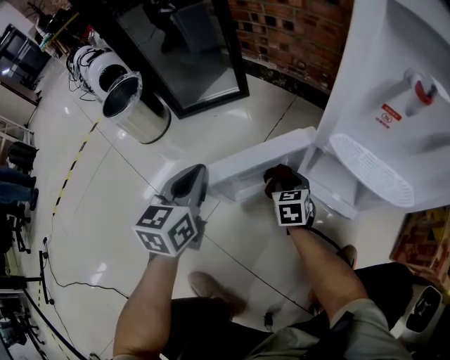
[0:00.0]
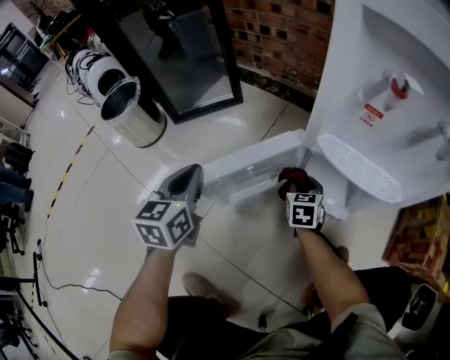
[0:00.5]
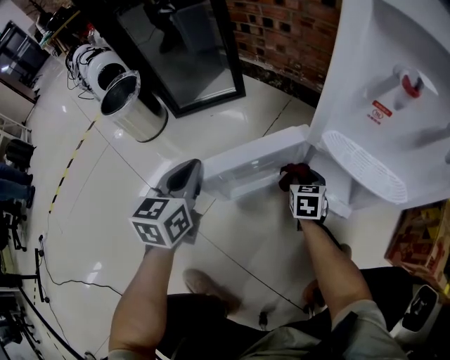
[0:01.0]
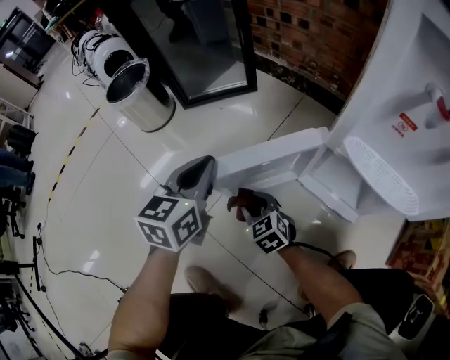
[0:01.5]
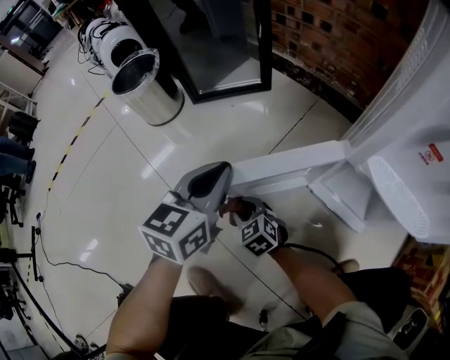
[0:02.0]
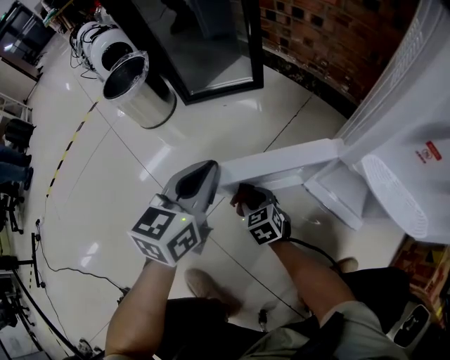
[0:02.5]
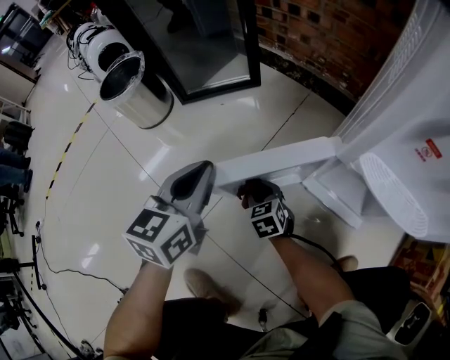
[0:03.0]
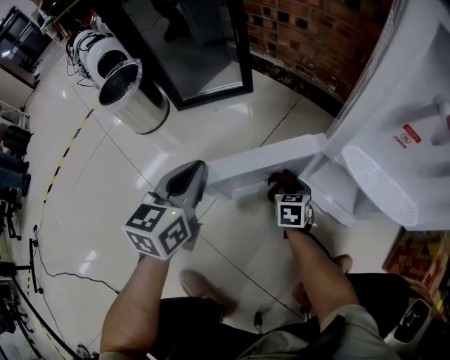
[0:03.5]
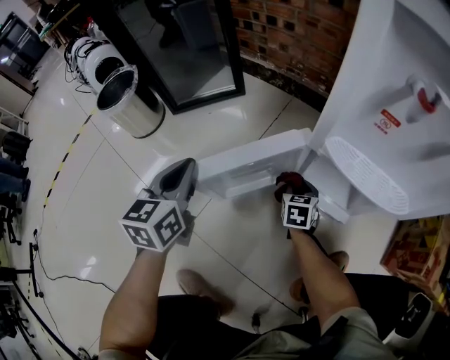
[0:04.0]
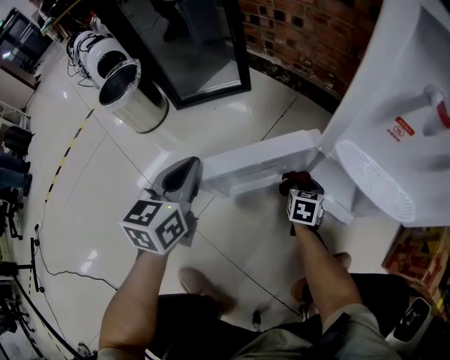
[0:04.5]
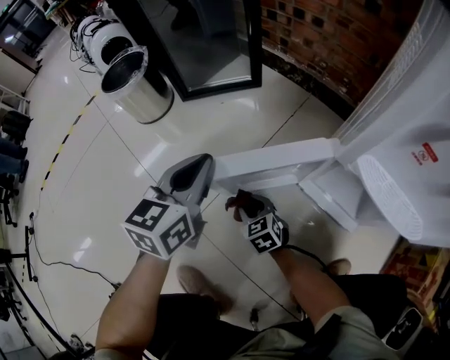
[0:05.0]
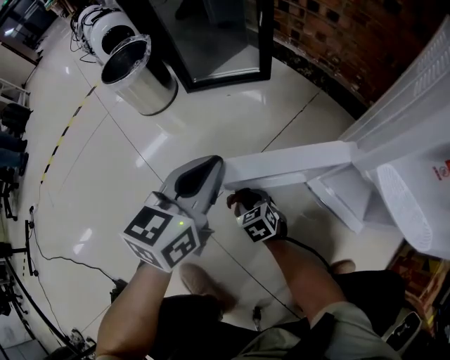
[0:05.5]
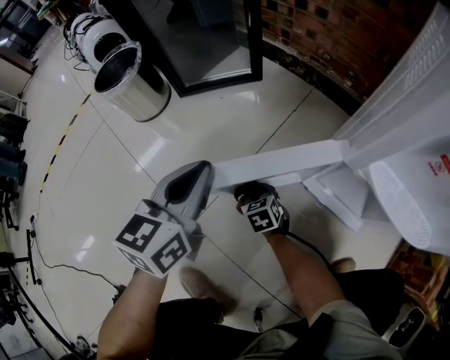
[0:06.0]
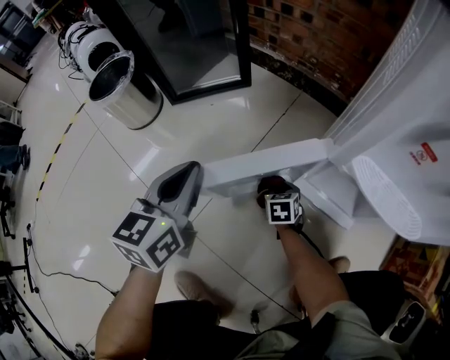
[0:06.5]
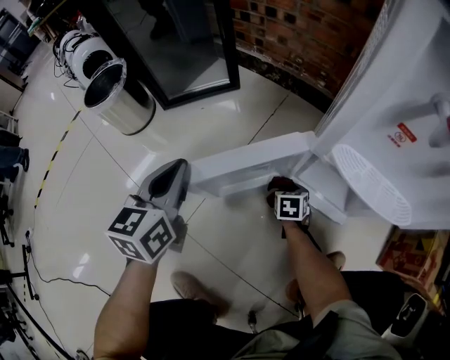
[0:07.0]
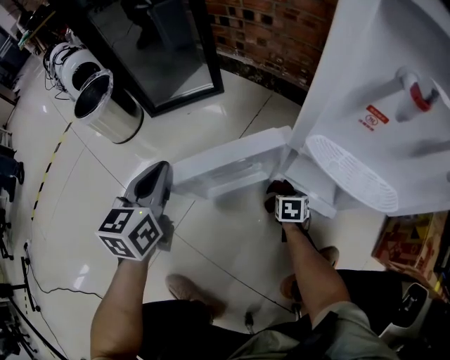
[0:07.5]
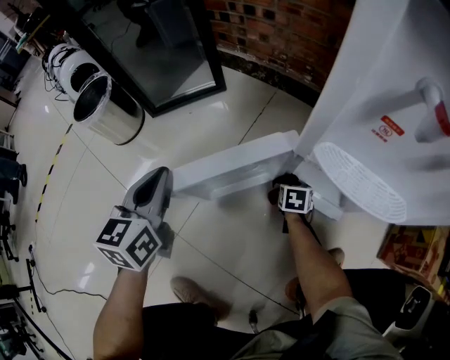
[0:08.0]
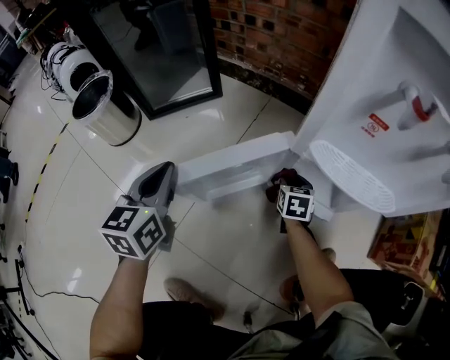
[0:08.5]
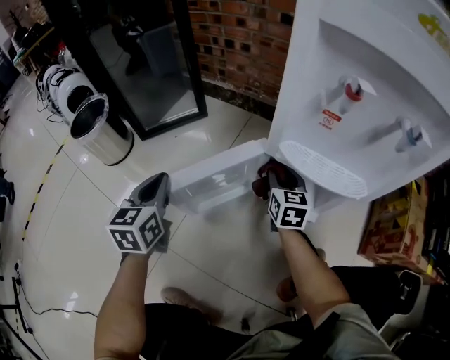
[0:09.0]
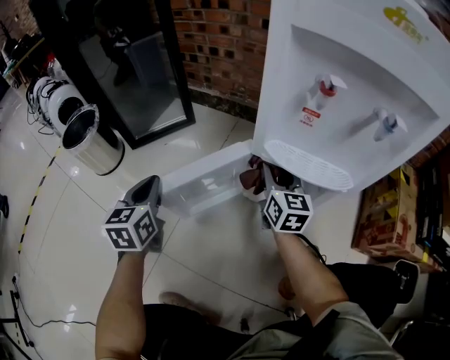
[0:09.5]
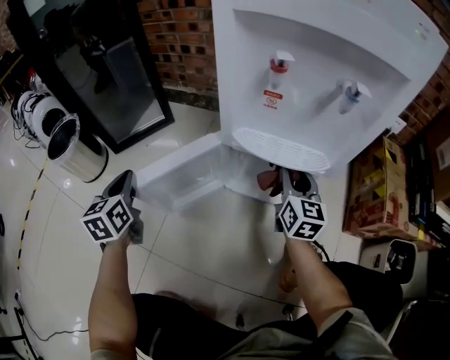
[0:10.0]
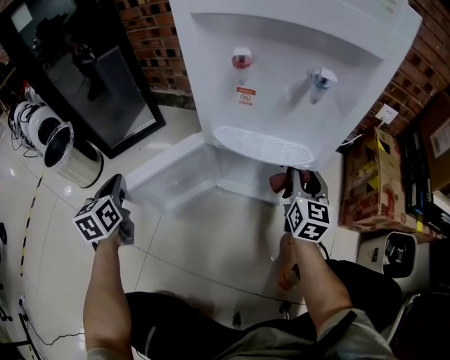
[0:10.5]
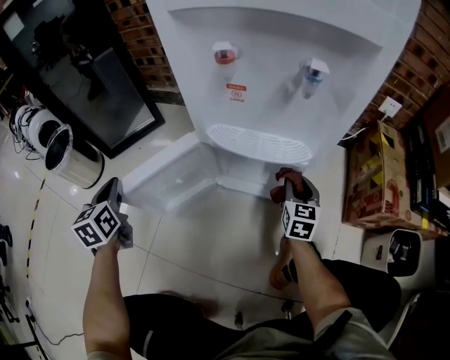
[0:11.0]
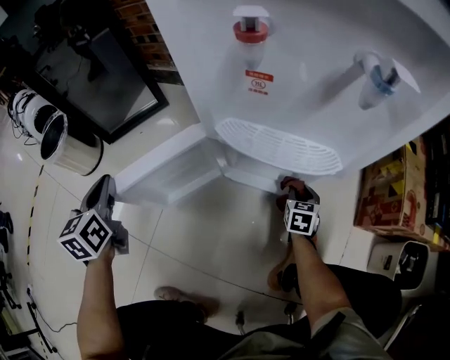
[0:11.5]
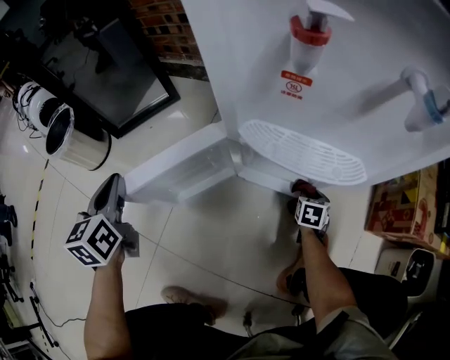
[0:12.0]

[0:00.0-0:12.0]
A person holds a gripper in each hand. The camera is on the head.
0.0 to 2.0 s: The right gripper travels to the left and backward by some 20 cm, and changes its angle by approximately 40 degrees.
2.0 to 4.0 s: The right gripper moves to the right, some 30 cm, and turns by some 50 degrees.
4.0 to 6.0 s: The right gripper goes roughly 20 cm to the left, and rotates roughly 30 degrees.
6.0 to 8.0 s: The right gripper travels to the right by some 25 cm, and changes its angle by about 40 degrees.
8.0 to 10.0 s: The right gripper travels upward by about 30 cm, and angles its fingers upward, by some 50 degrees.
10.0 to 12.0 s: The right gripper shifts about 30 cm downward, and tilts its fingers roughly 40 degrees downward.

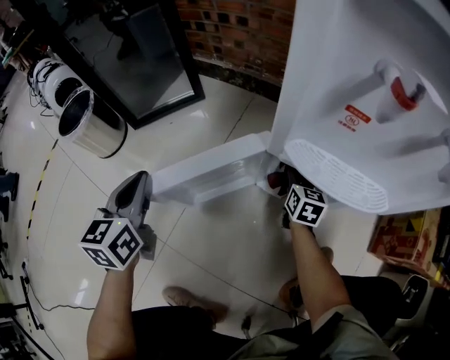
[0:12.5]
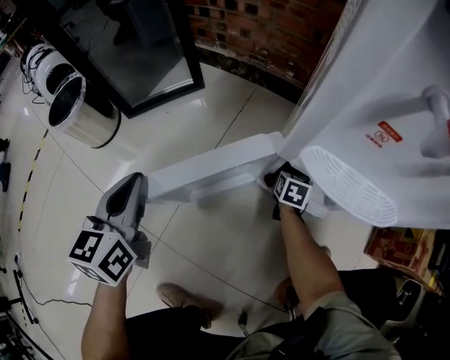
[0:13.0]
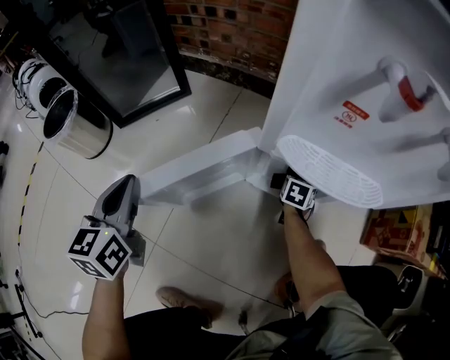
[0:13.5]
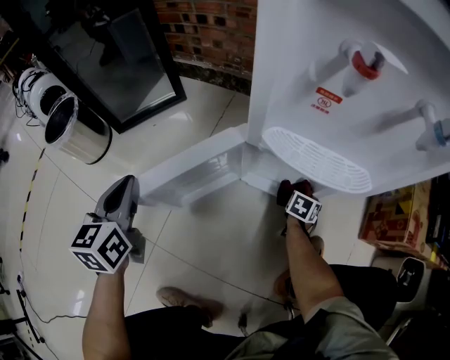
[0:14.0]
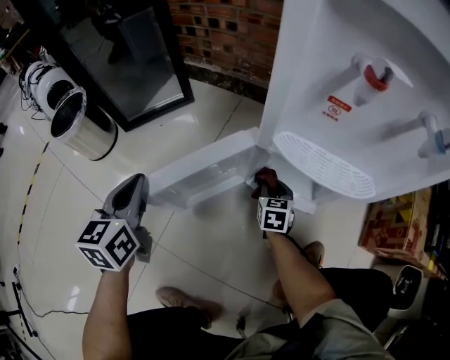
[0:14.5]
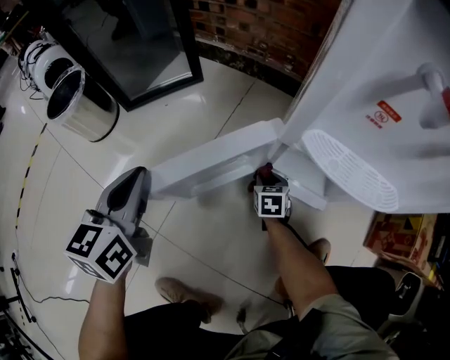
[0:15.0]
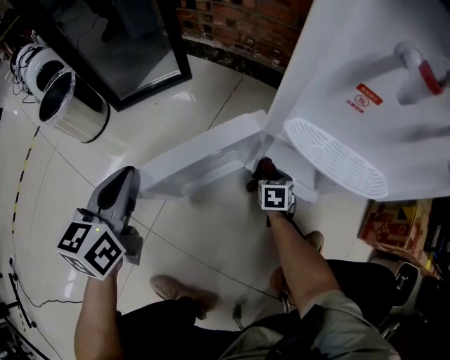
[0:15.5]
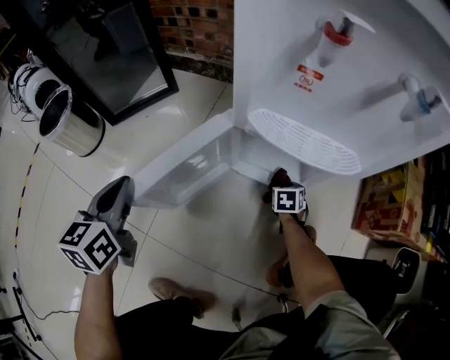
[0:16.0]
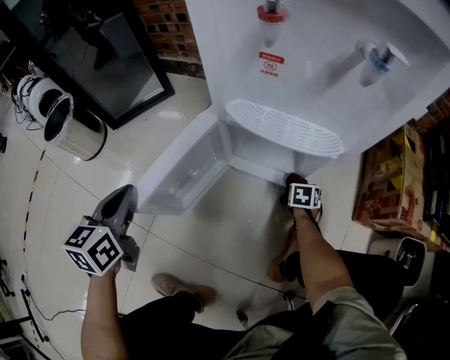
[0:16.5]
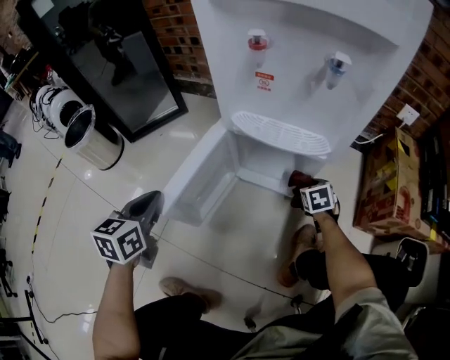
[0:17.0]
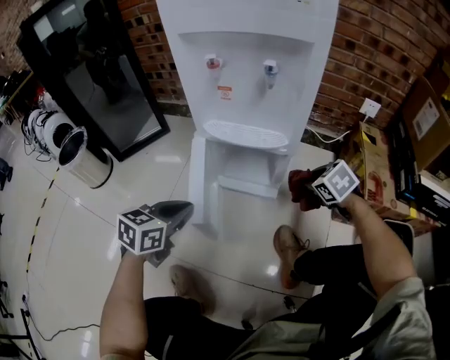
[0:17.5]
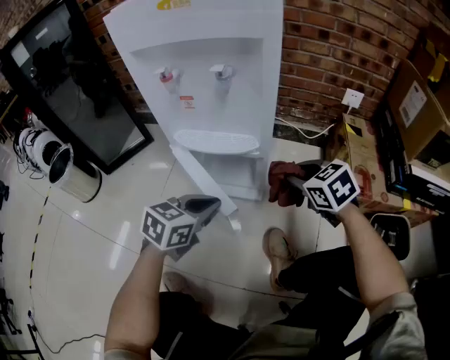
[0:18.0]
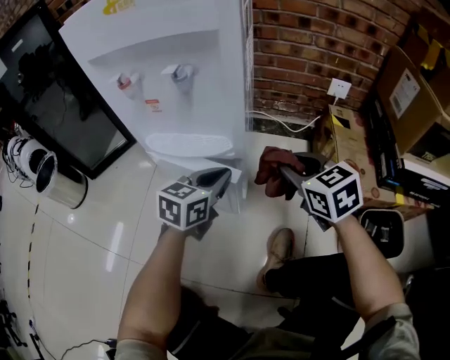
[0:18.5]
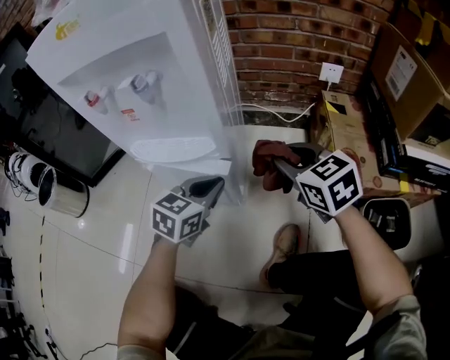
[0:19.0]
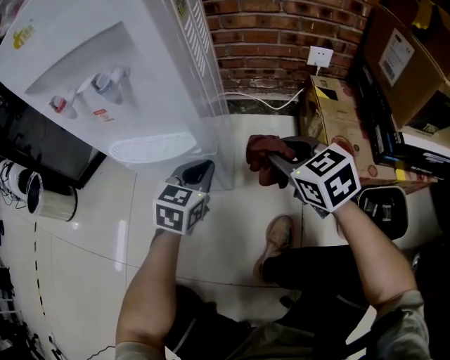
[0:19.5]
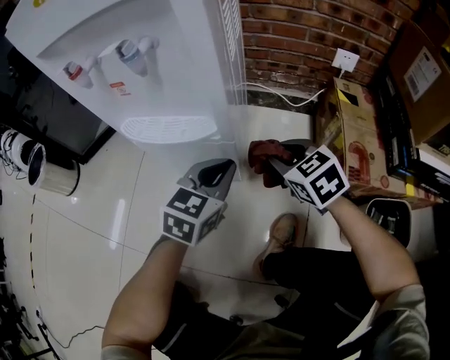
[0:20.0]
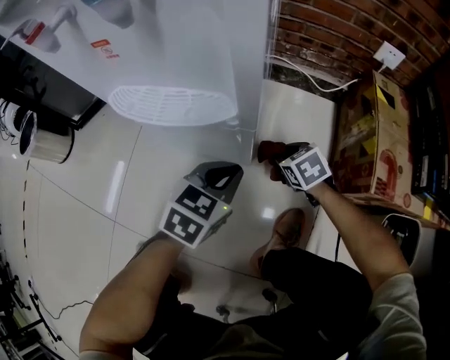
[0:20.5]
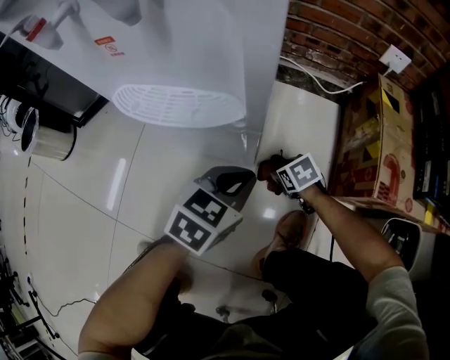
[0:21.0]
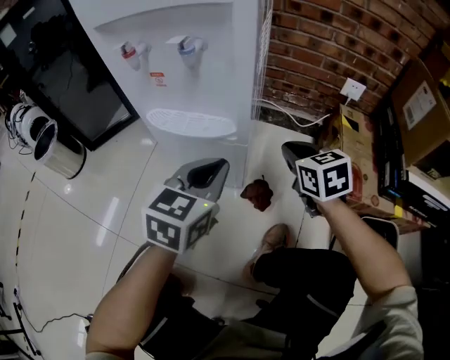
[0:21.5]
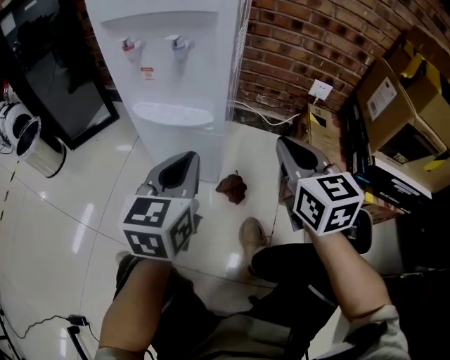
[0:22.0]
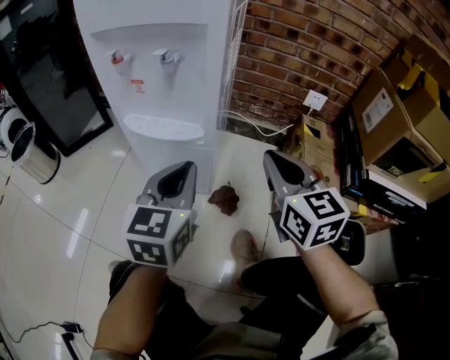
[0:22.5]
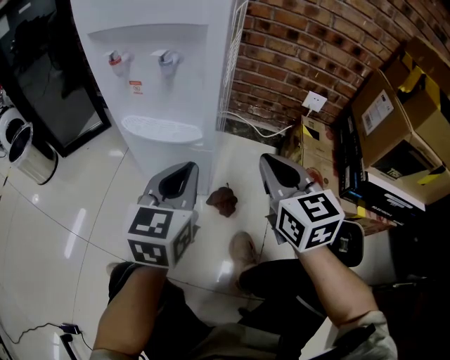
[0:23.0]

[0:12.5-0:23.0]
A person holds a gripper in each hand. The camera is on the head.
12.5 to 14.5 s: The right gripper goes approximately 5 cm backward, and moves some 15 cm to the right and comes back.
14.5 to 16.5 s: The left gripper is displaced backward and to the right by about 10 cm. Meanwhile the right gripper is displaced to the right by roughly 20 cm, and swivels about 30 degrees.
16.5 to 19.0 s: The right gripper heads upward, covering some 35 cm, and tilts its fingers roughly 30 degrees upward; the left gripper goes some 40 cm to the right, and rotates approximately 40 degrees.
19.0 to 21.0 s: The left gripper heads downward, covering some 5 cm. The right gripper travels downward by roughly 35 cm, angles its fingers downward, by approximately 30 degrees, and opens.
21.0 to 23.0 s: The right gripper goes approximately 40 cm upward, tips its fingers upward by approximately 50 degrees, and closes. Meanwhile the left gripper travels upward by some 20 cm, and rotates about 40 degrees.

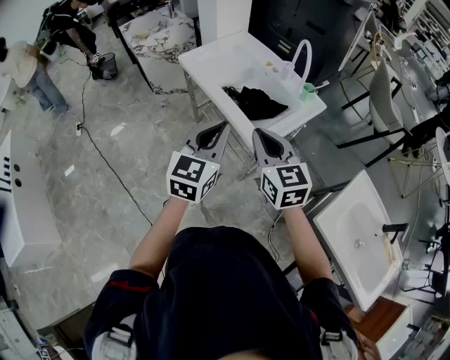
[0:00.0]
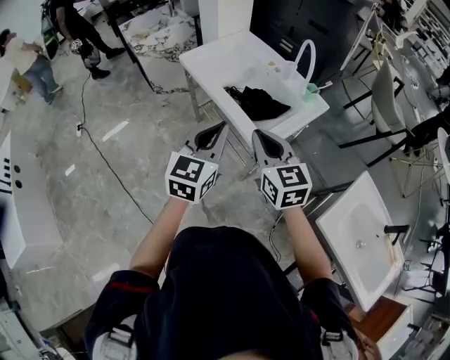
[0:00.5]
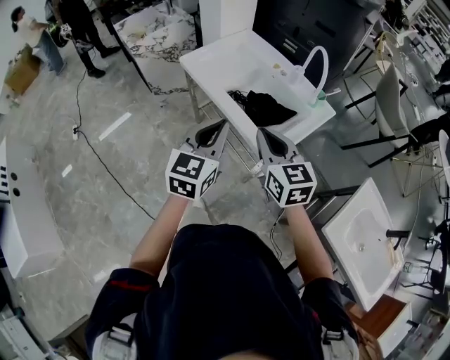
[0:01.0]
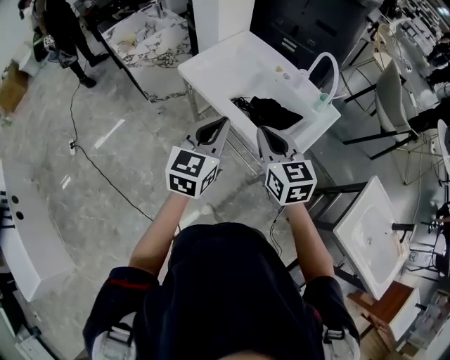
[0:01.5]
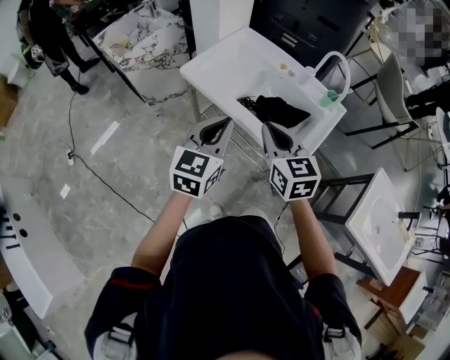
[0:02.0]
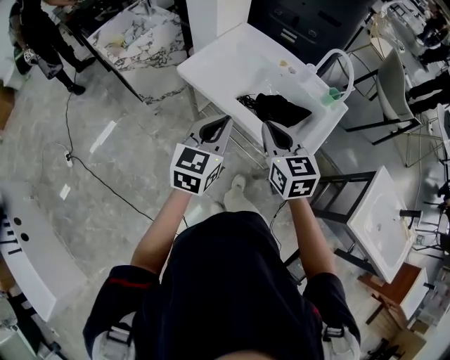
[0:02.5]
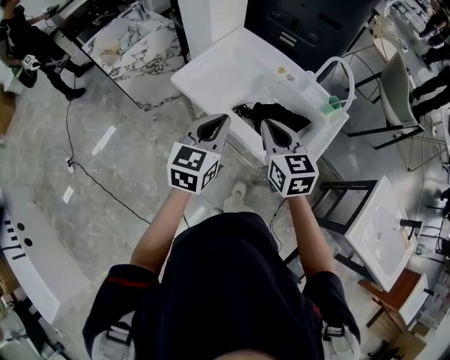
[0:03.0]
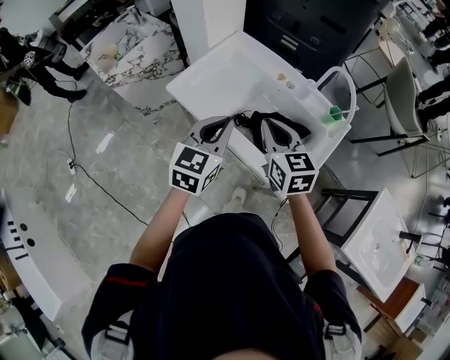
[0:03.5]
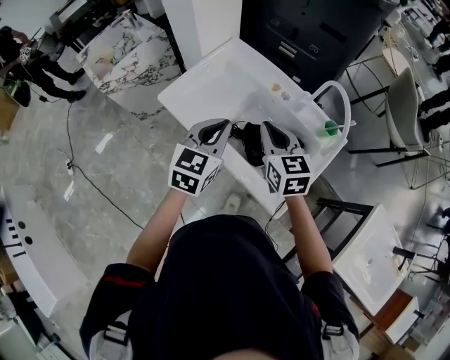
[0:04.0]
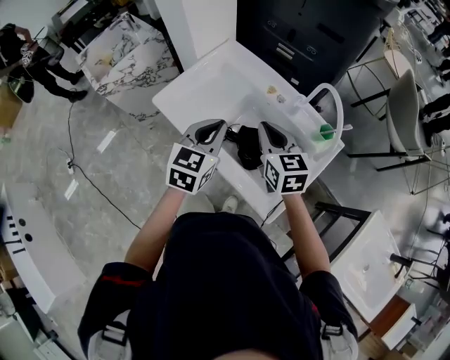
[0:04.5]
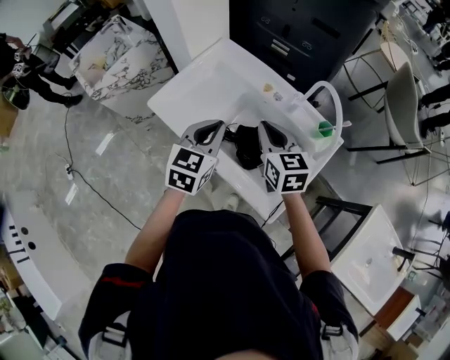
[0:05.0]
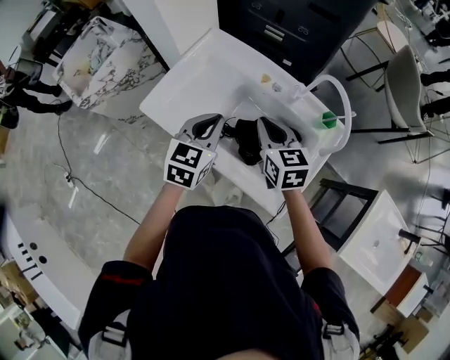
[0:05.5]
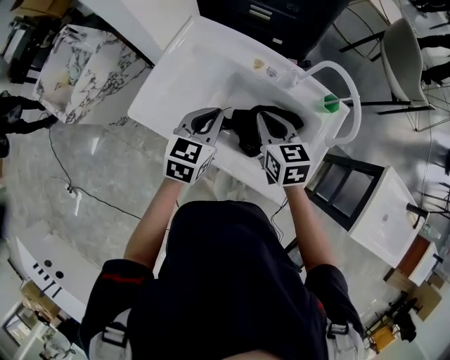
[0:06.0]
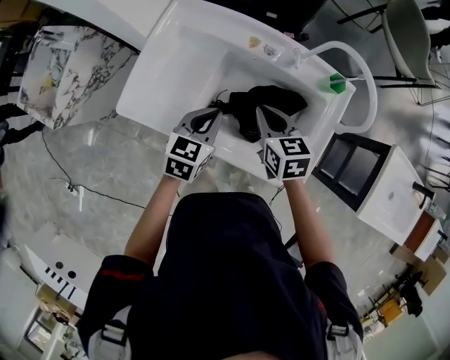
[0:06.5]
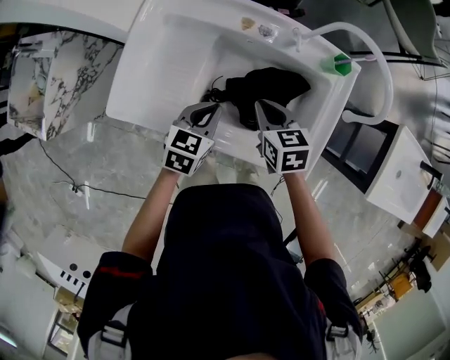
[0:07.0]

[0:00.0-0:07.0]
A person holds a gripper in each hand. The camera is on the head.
0.0 to 2.0 s: The two grippers go about 20 cm forward and to the left.
2.0 to 3.5 s: Both grippers travel together forward, approximately 15 cm.
3.5 to 5.0 s: The right gripper heads forward and to the right, covering some 10 cm. The left gripper moves forward, roughly 10 cm.
5.0 to 7.0 s: The two grippers go roughly 15 cm downward. The left gripper rotates about 30 degrees, while the right gripper swivels about 30 degrees.
